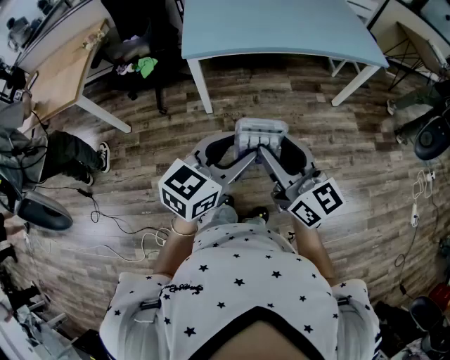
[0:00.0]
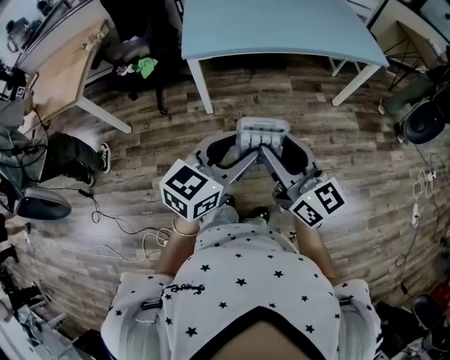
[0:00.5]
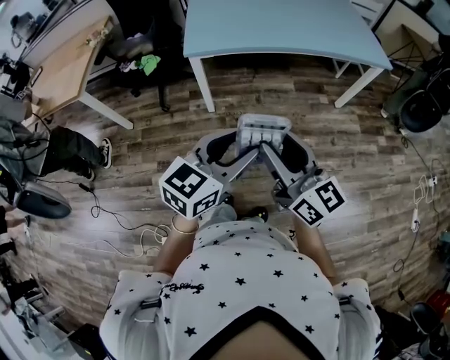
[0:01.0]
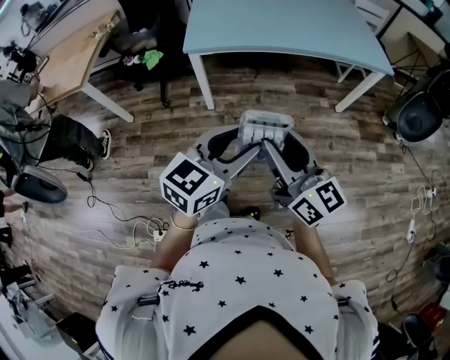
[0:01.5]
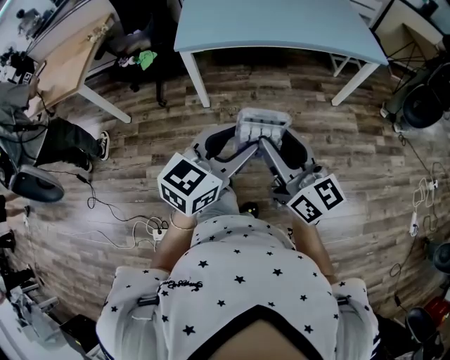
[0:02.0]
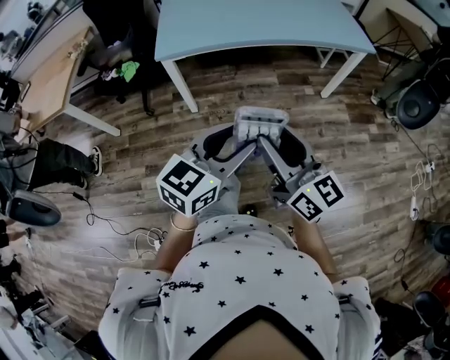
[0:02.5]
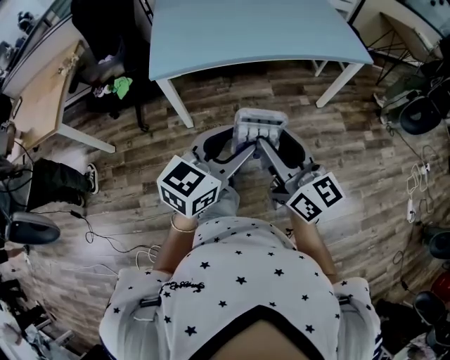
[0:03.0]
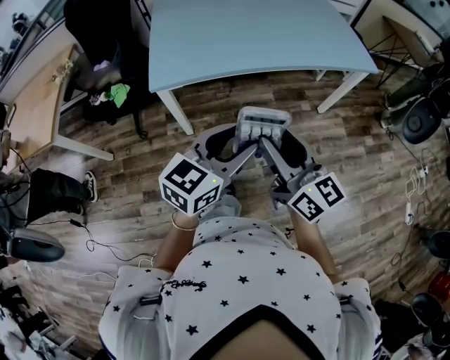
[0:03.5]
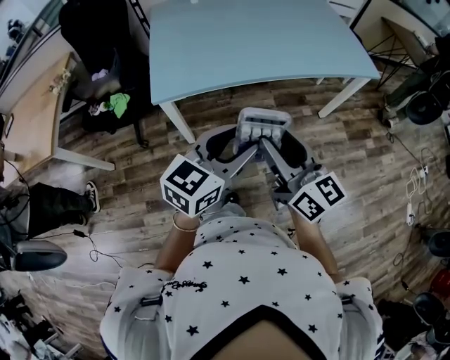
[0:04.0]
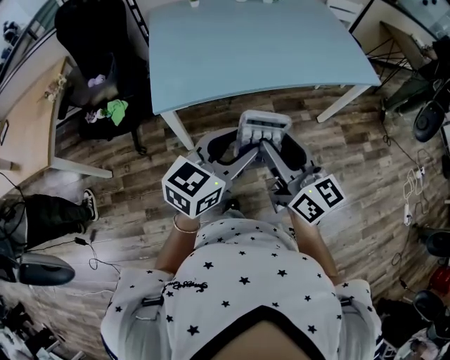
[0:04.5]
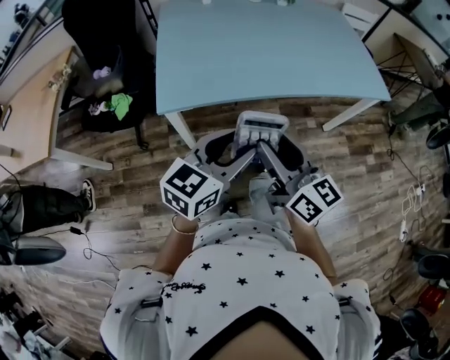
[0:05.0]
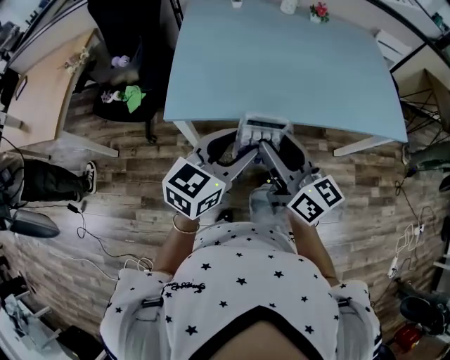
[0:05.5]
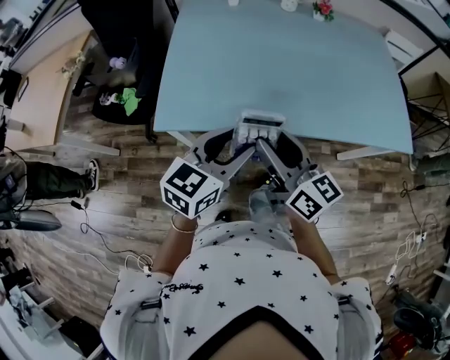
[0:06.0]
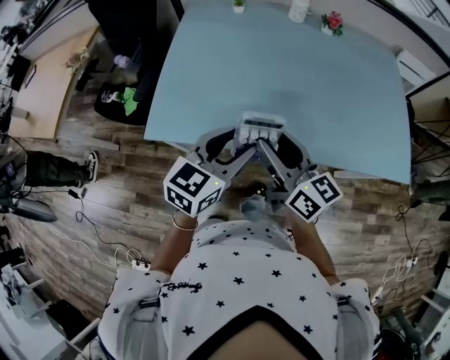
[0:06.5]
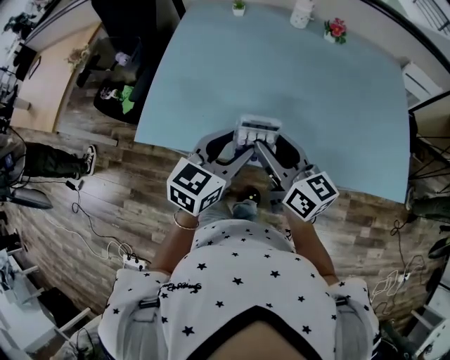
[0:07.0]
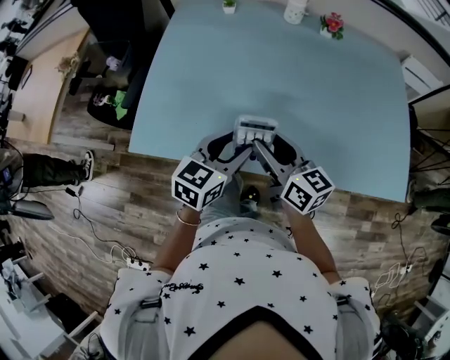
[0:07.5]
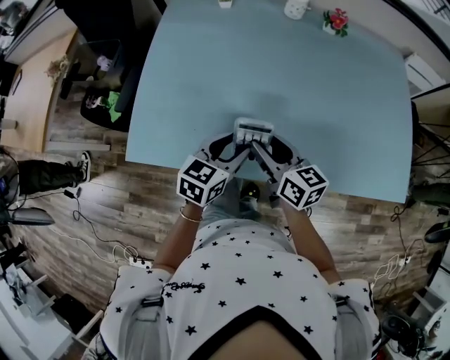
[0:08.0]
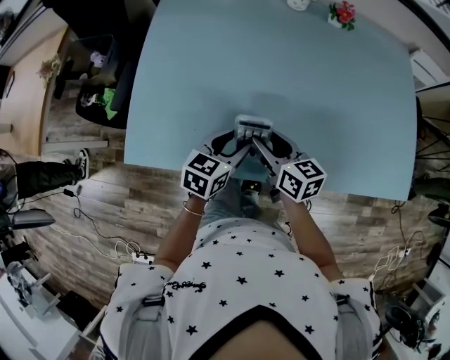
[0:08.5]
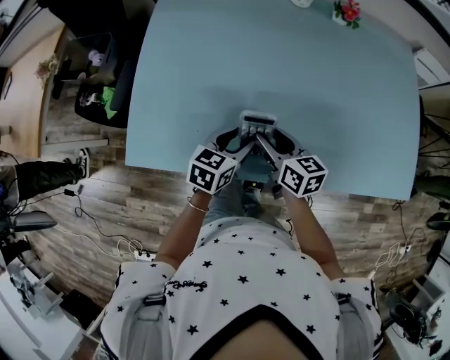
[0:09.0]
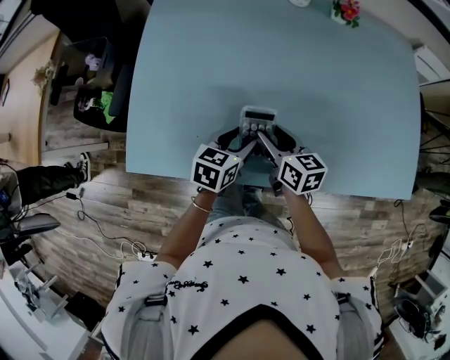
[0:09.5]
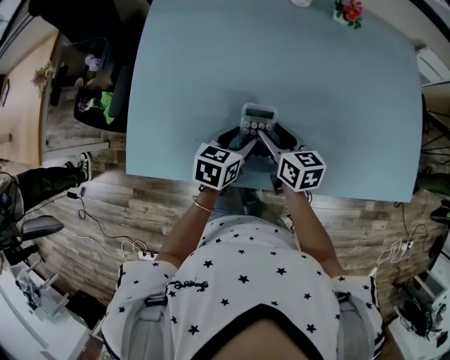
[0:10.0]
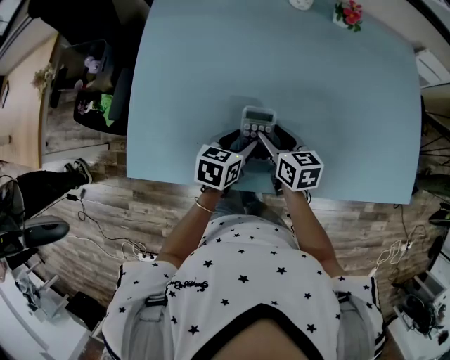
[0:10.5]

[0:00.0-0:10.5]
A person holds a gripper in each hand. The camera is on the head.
0:00.0 to 0:02.0: Both grippers move to the right, about 10 cm.
0:02.0 to 0:04.0: The grippers both shift forward by roughly 25 cm.
0:04.0 to 0:06.5: Both grippers move forward, approximately 30 cm. The left gripper turns by roughly 20 degrees. Meanwhile the right gripper changes its angle by roughly 20 degrees.
0:06.5 to 0:08.5: Both grippers travel together downward and forward, about 20 cm. The right gripper swivels about 20 degrees.
0:08.5 to 0:10.5: The right gripper travels downward and forward by roughly 5 cm. The left gripper changes place by some 5 cm.

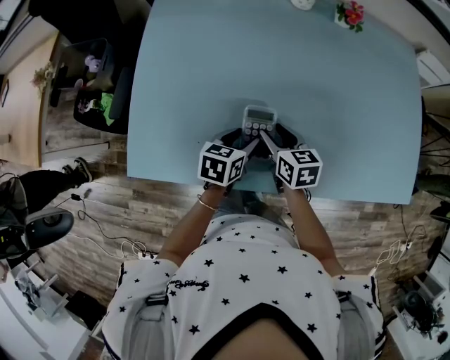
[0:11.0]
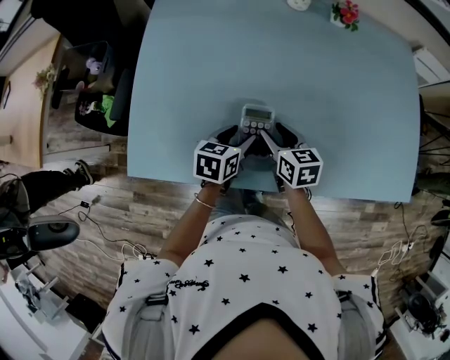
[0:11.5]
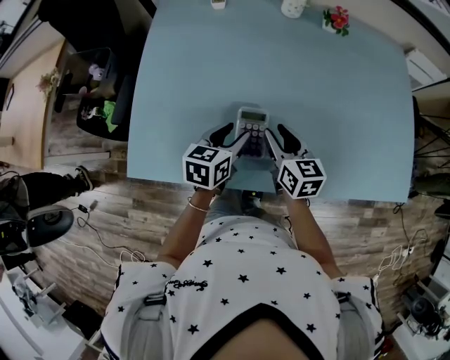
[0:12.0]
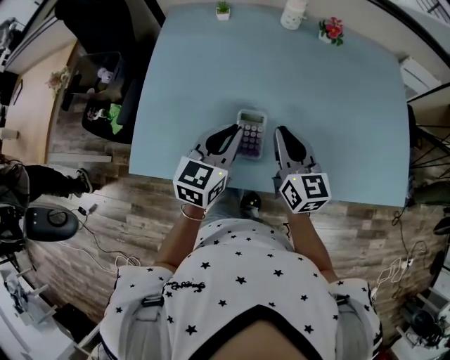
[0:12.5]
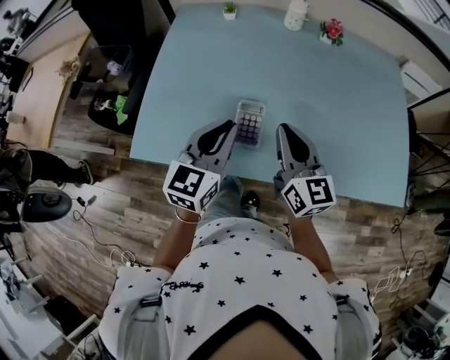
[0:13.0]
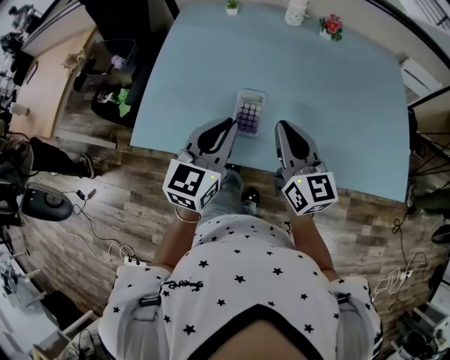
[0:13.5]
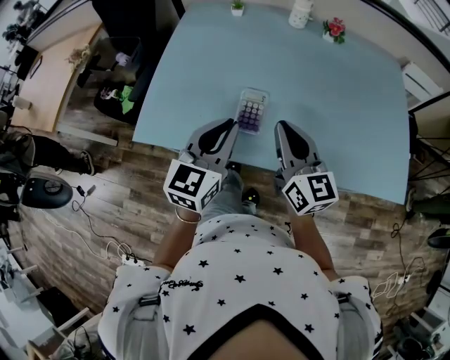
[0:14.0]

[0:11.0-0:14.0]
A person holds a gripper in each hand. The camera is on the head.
0:11.0 to 0:12.5: The grippers both shift upward by some 15 cm. The right gripper changes its angle by some 30 degrees, and closes. Meanwhile the left gripper rotates about 30 degrees, and closes up.
0:12.5 to 0:14.0: The two grippers go roughly 10 cm backward and upward.

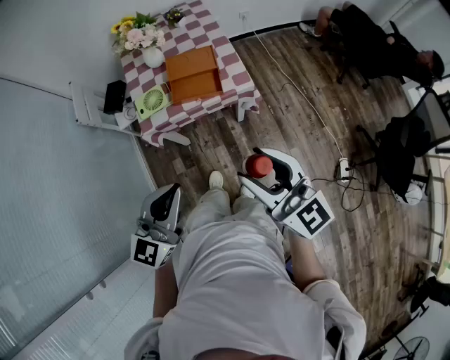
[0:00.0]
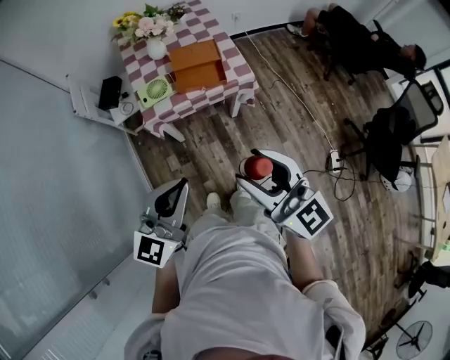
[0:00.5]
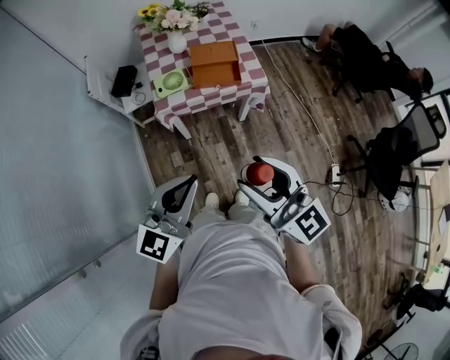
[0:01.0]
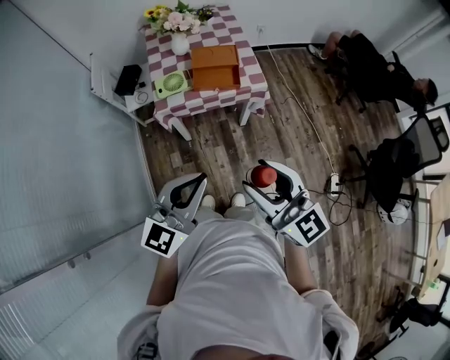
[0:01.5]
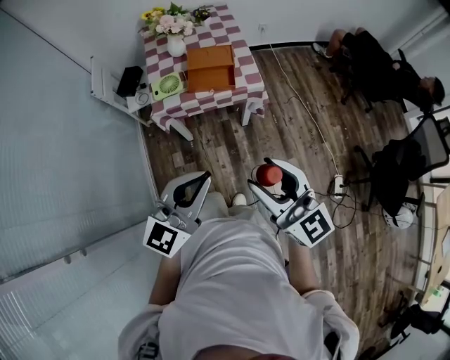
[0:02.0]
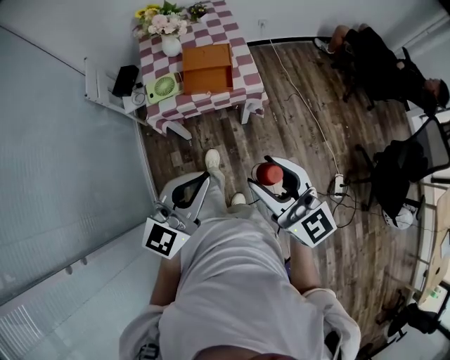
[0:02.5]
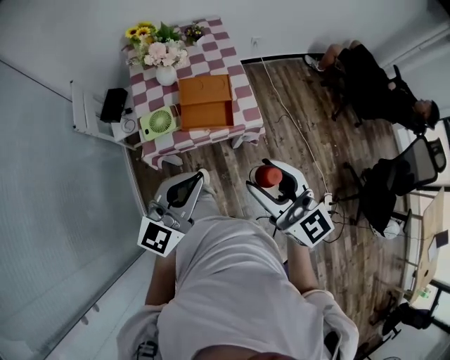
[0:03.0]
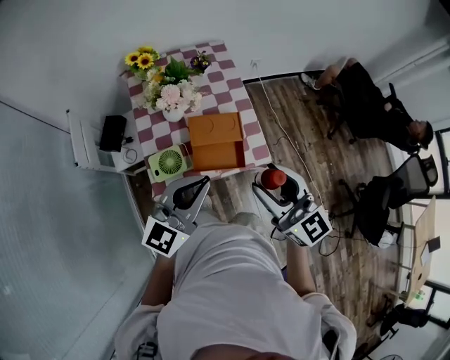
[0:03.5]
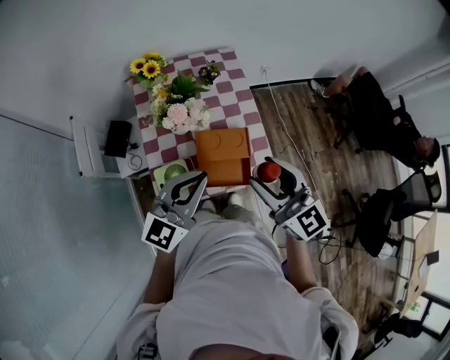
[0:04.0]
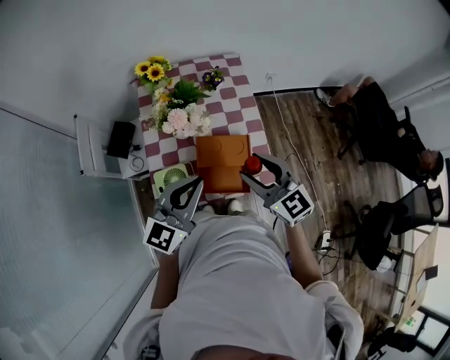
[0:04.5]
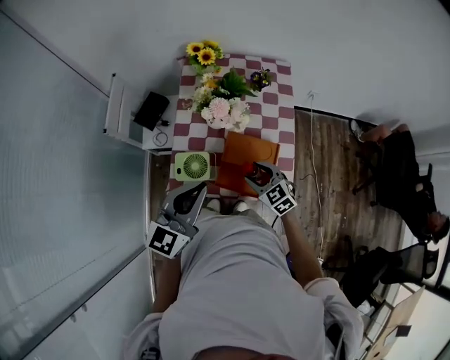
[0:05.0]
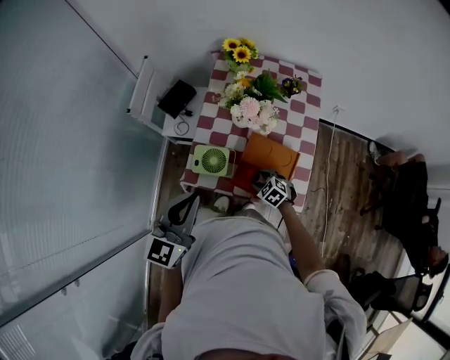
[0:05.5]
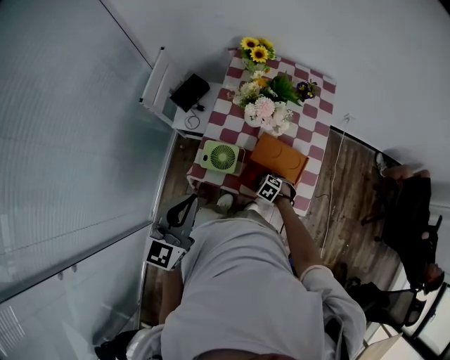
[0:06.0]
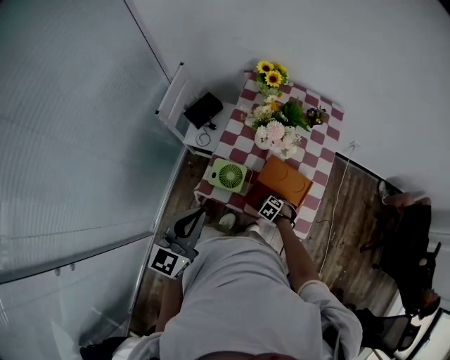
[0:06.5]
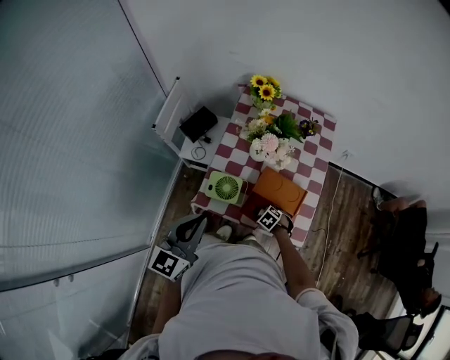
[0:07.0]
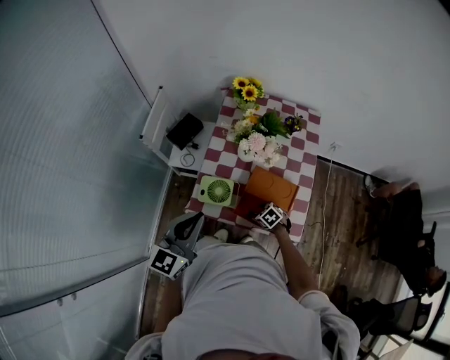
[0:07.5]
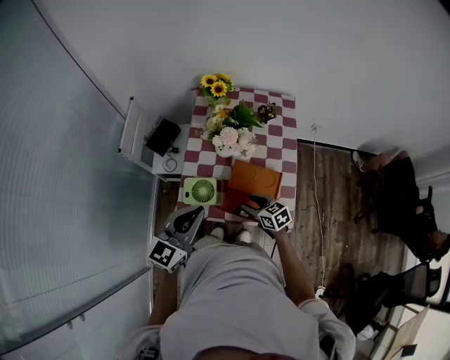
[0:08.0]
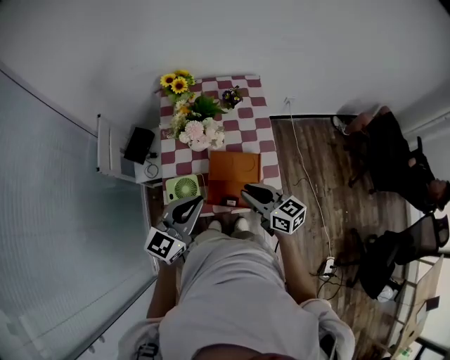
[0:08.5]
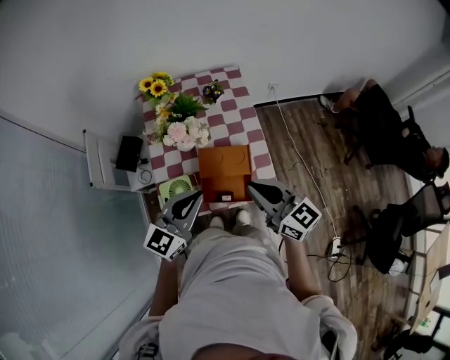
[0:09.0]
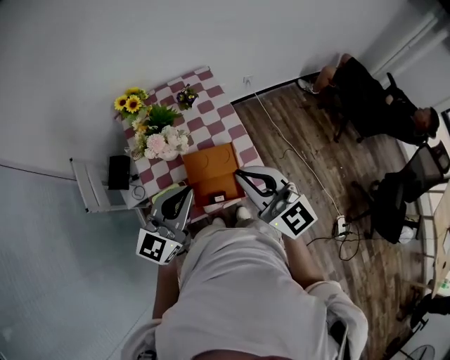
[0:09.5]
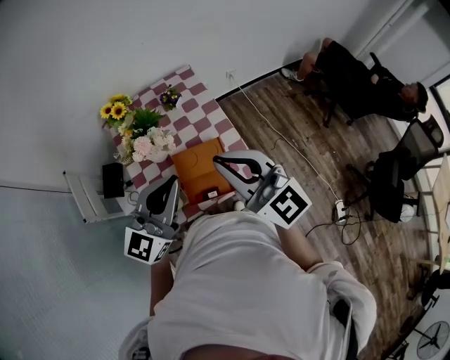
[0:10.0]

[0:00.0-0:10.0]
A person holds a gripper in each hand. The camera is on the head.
0:00.0 to 0:02.0: Both grippers move backward, about 10 cm. The right gripper travels to the left and back again, some 10 cm each way.
0:02.0 to 0:04.0: The pair of grippers is taken forward, approximately 50 cm.
0:04.0 to 0:06.0: The right gripper heads downward, covering roughly 50 cm, and angles its fingers downward, by some 70 degrees, while the left gripper changes place by about 15 cm, and changes its angle by about 40 degrees.
0:06.0 to 0:08.0: The right gripper heads upward, covering some 20 cm, and tips its fingers upward by about 40 degrees; the left gripper ends up about 5 cm from where it was.
0:08.0 to 0:10.0: The right gripper goes approximately 35 cm upward, points its fingers some 40 degrees further upward, and closes up; the left gripper moves some 15 cm, and changes its angle by roughly 30 degrees.

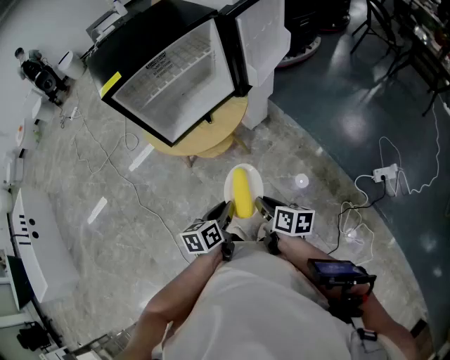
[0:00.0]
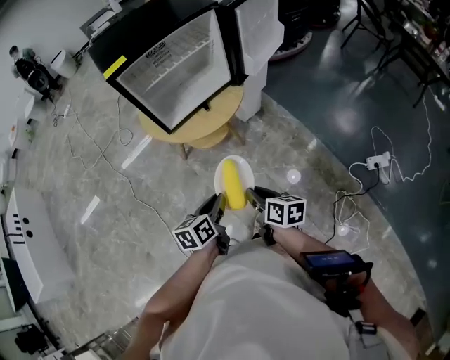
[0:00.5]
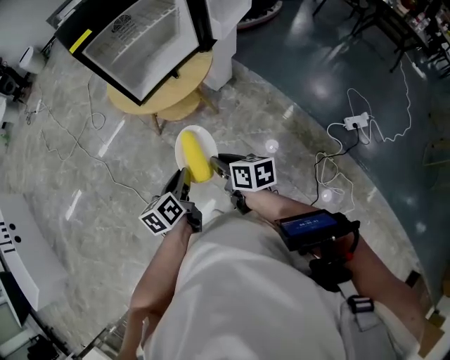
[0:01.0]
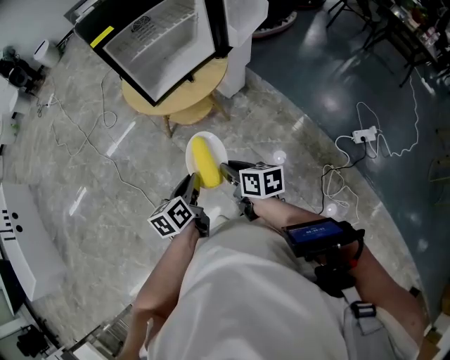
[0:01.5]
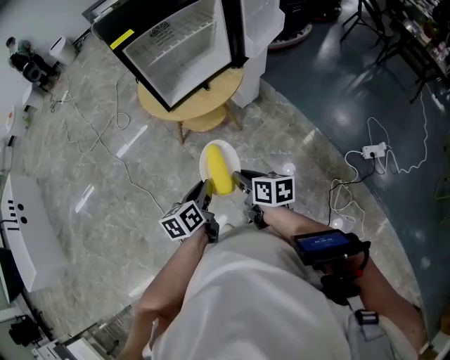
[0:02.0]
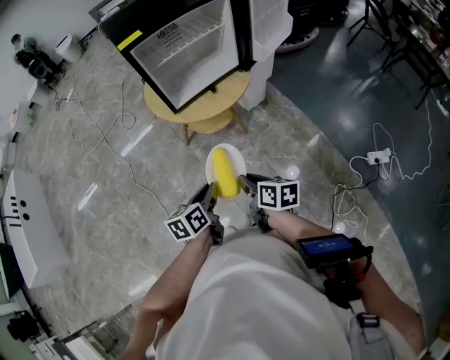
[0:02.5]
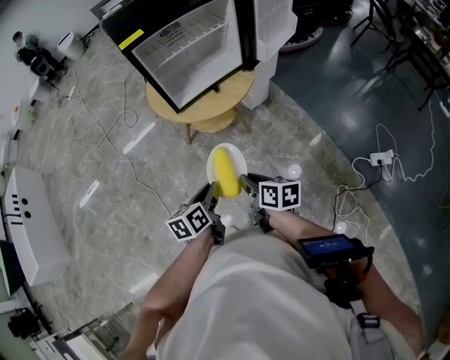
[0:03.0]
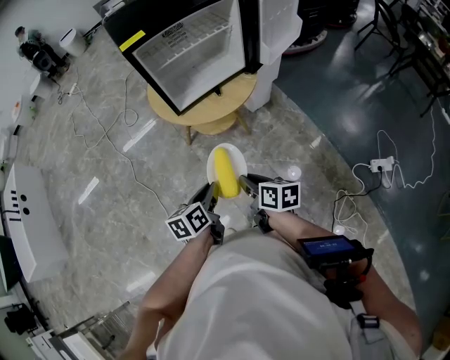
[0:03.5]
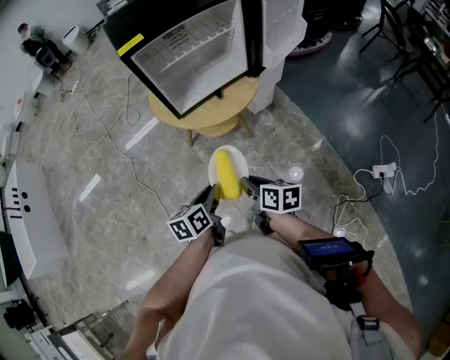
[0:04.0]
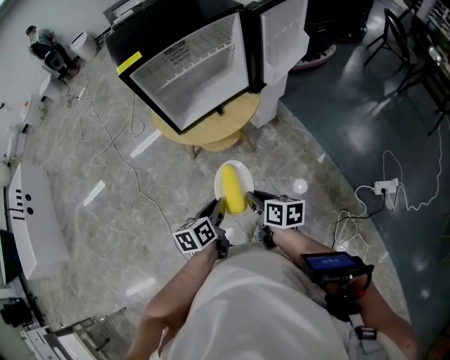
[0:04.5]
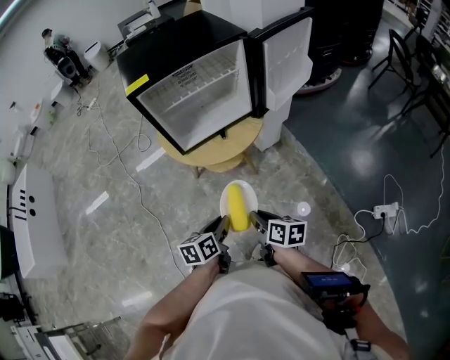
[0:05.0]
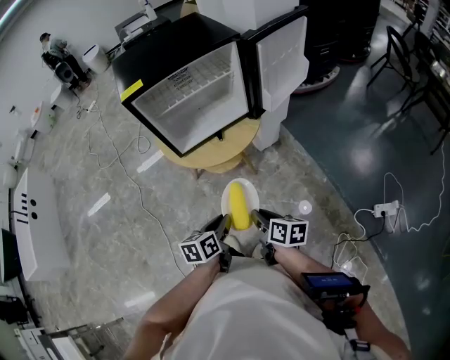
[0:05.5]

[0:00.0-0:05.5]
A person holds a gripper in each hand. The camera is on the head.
0:00.0 to 0:02.0: The two grippers go roughly 10 cm to the left and backward.
0:02.0 to 0:03.5: There are only small adjustments of the grippers.
0:03.5 to 0:05.5: Both grippers travel together to the right, roughly 10 cm.
